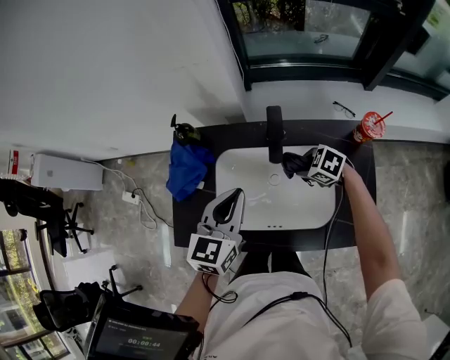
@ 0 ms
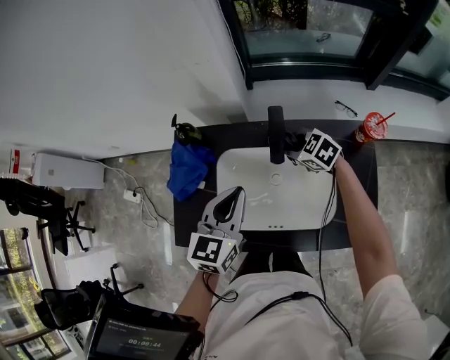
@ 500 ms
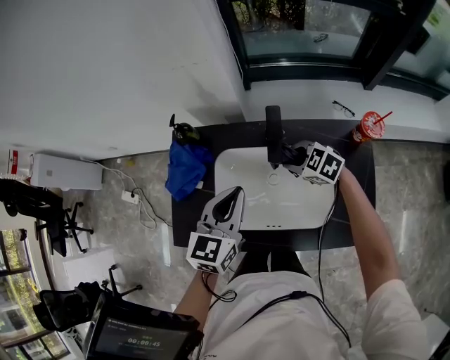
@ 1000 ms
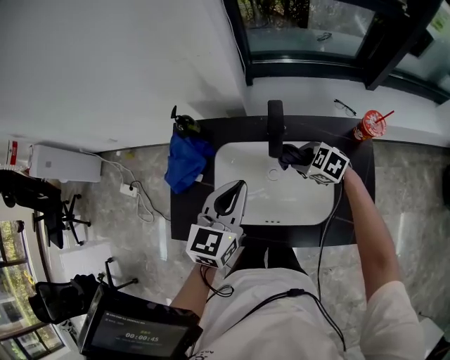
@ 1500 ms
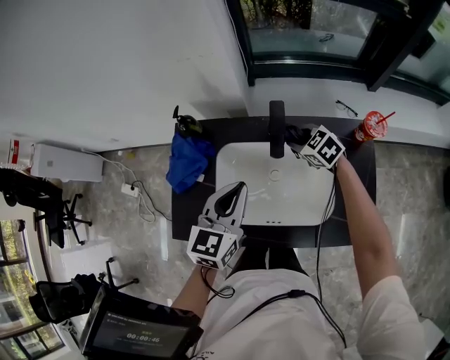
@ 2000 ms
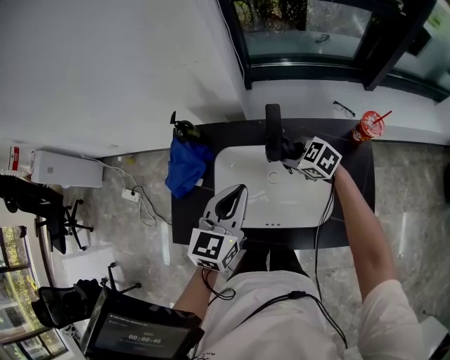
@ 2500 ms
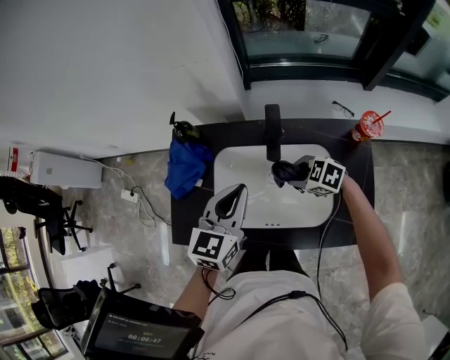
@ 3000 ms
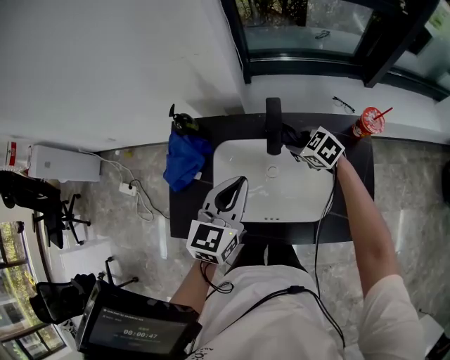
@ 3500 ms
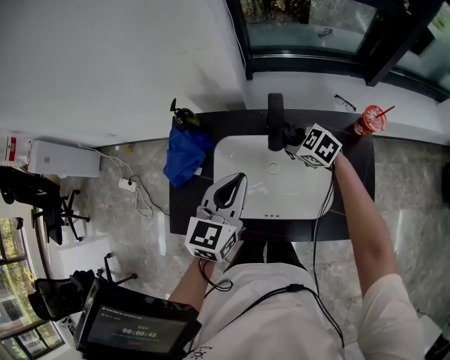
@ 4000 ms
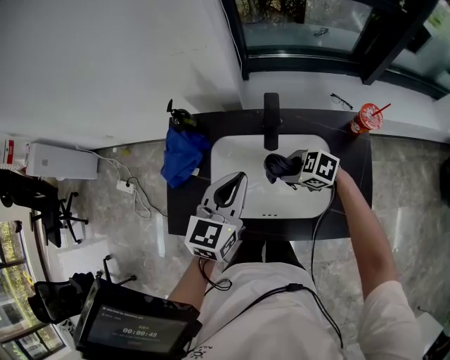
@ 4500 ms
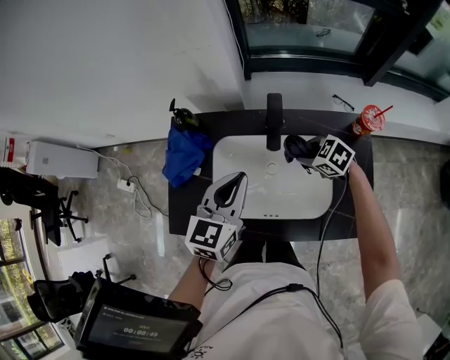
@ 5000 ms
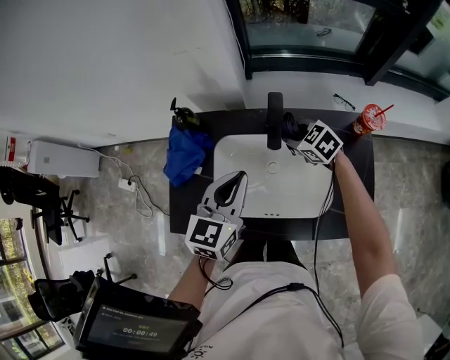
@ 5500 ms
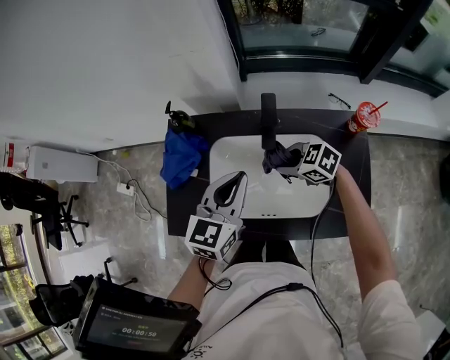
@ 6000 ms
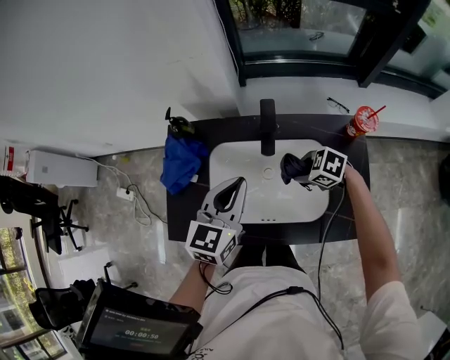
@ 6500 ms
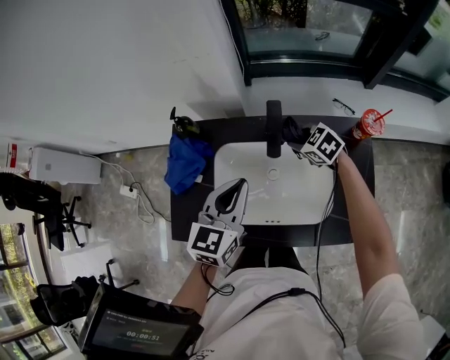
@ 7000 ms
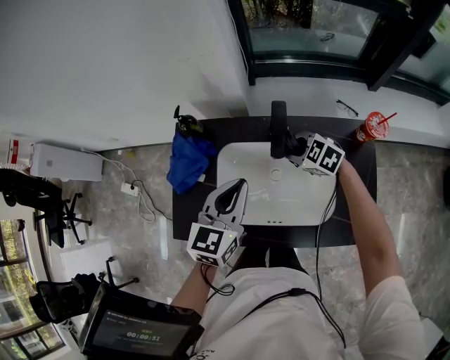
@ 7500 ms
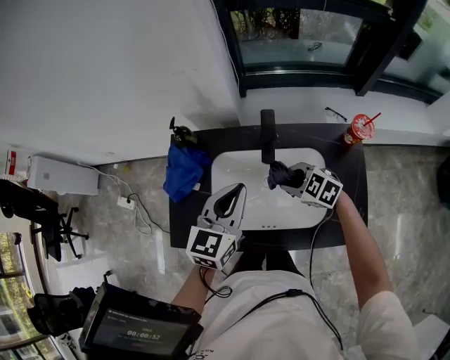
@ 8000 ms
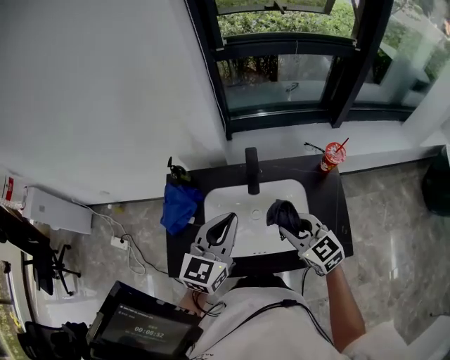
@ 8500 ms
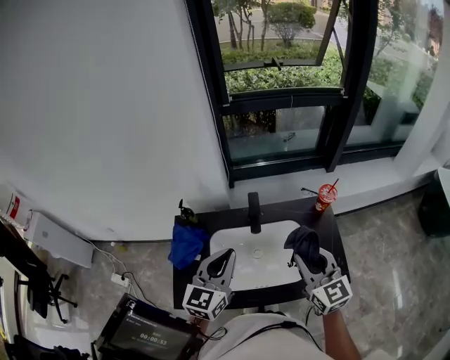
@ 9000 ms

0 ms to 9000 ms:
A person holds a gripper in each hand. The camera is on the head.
0 ms to 2000 ms: The right gripper swings forward and backward, approximately 10 cm each way, with 2 reversals, and rotates roughly 20 degrees.
2000 ms to 4500 ms: The right gripper goes forward and backward, roughly 10 cm each way, reversing 2 times, and swivels some 30 degrees.
4500 ms to 7000 ms: The right gripper moves some 15 cm, and rotates roughly 20 degrees.
7000 ms to 9000 ms: The right gripper moves upward, roughly 25 cm, and points its fingers about 40 degrees further upward, while the left gripper heads upward, covering roughly 10 cm.

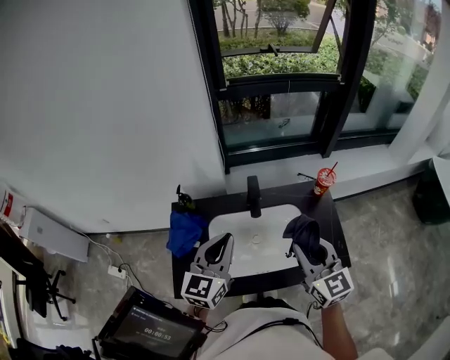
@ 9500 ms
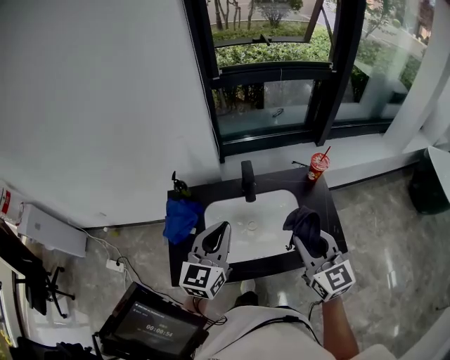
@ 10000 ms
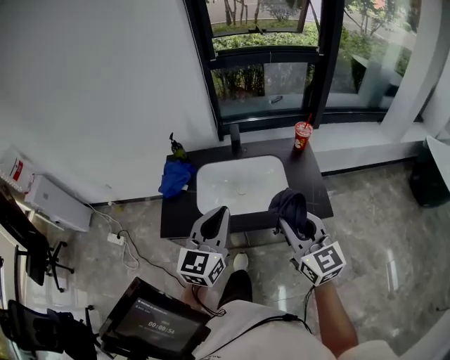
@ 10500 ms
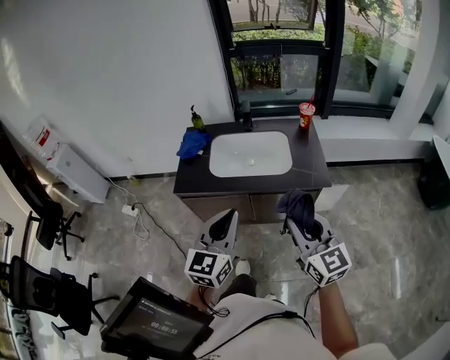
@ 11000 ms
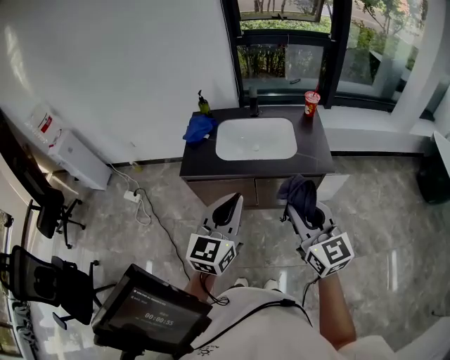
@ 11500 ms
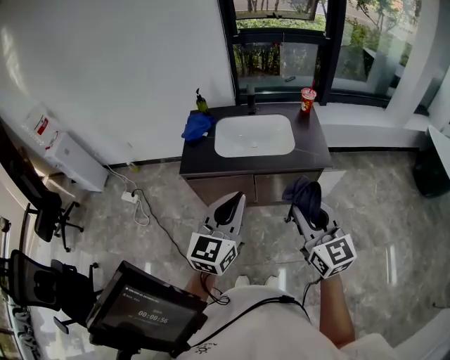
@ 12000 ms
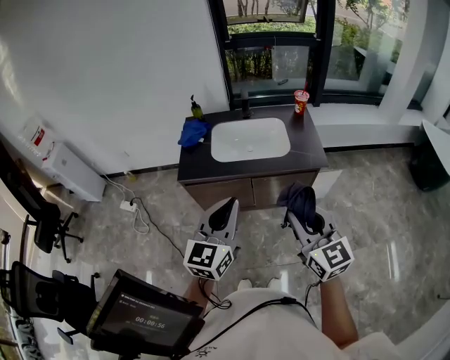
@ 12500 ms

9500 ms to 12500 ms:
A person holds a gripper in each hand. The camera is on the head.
9500 ms to 11000 ms: The grippers both shift backward by roughly 40 cm.
11000 ms to 12500 ms: The two grippers go roughly 5 cm backward.

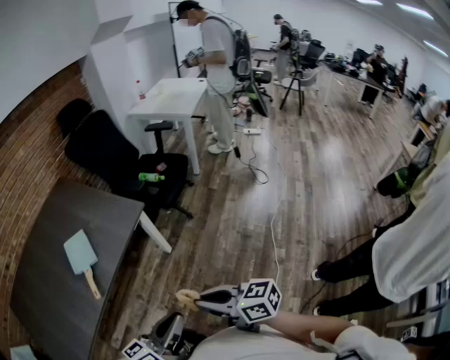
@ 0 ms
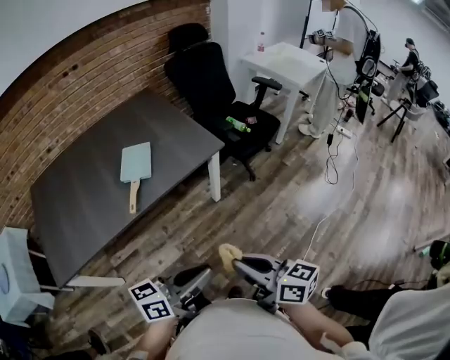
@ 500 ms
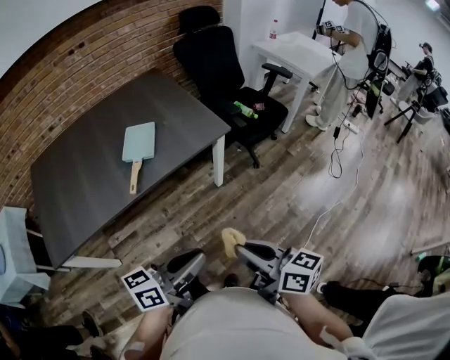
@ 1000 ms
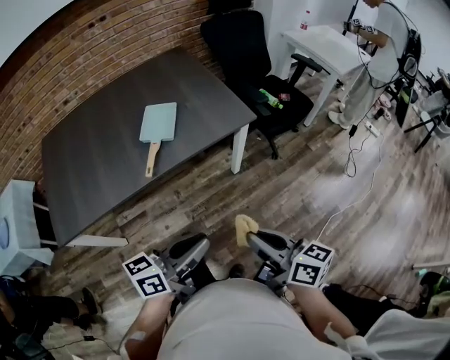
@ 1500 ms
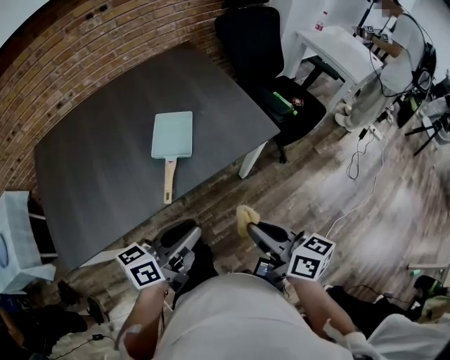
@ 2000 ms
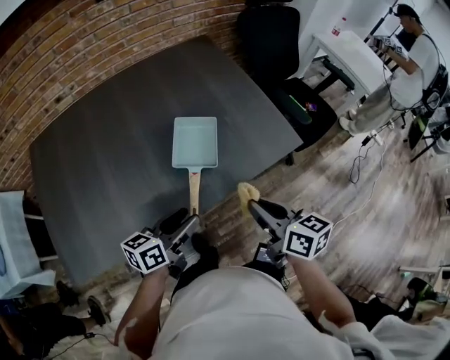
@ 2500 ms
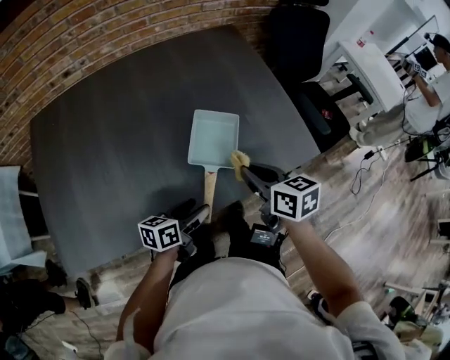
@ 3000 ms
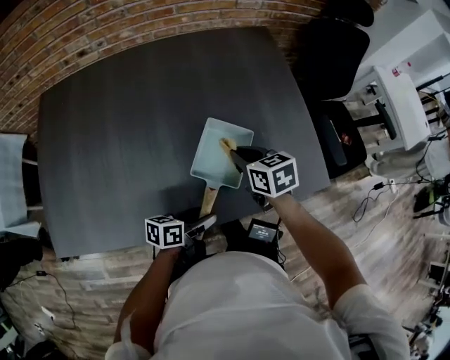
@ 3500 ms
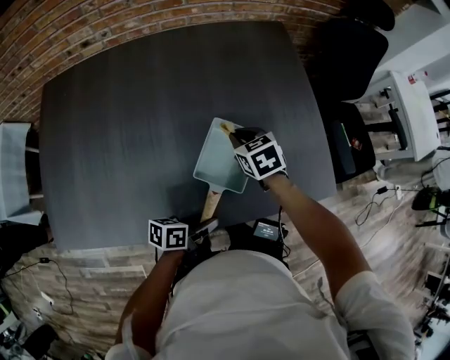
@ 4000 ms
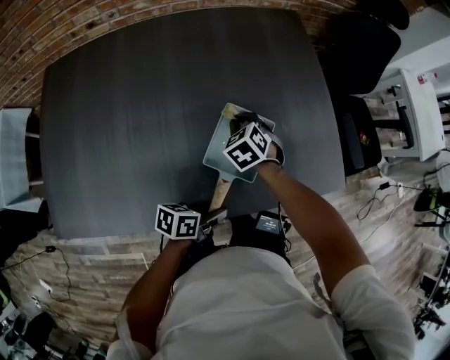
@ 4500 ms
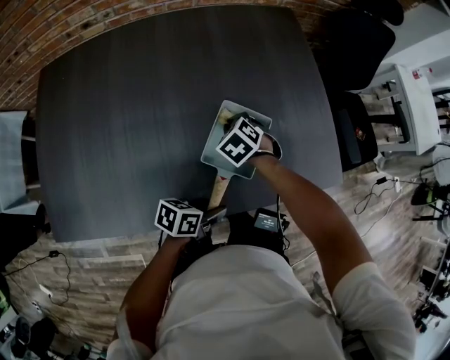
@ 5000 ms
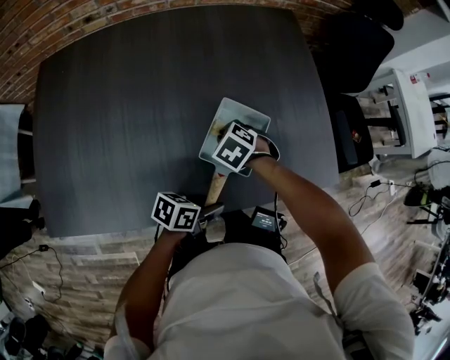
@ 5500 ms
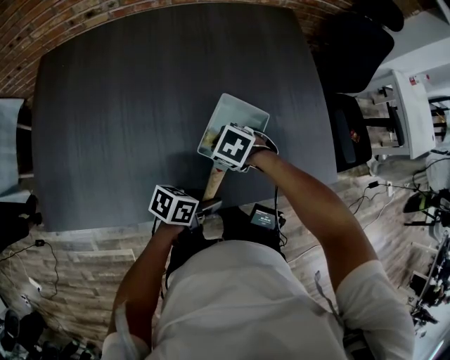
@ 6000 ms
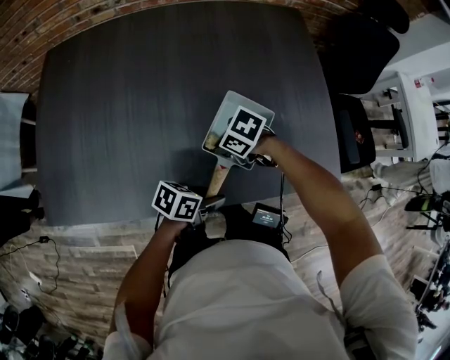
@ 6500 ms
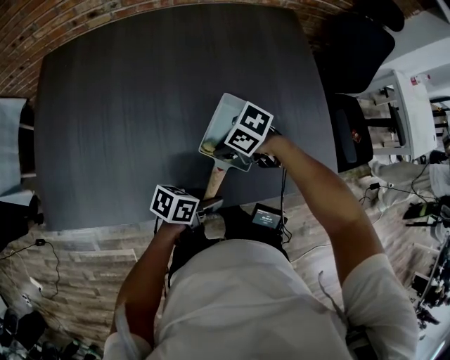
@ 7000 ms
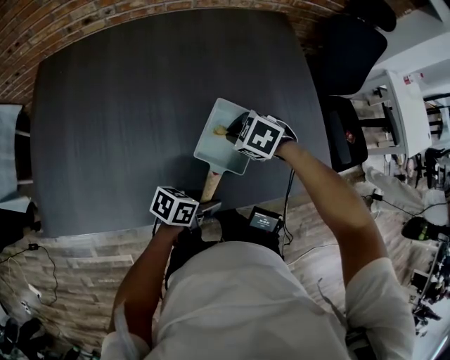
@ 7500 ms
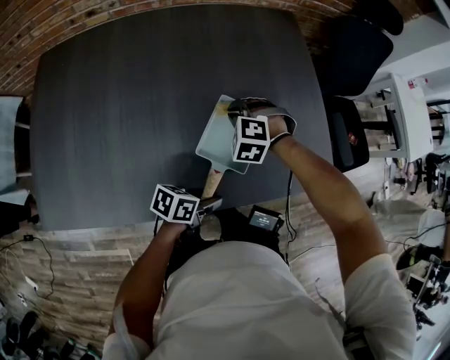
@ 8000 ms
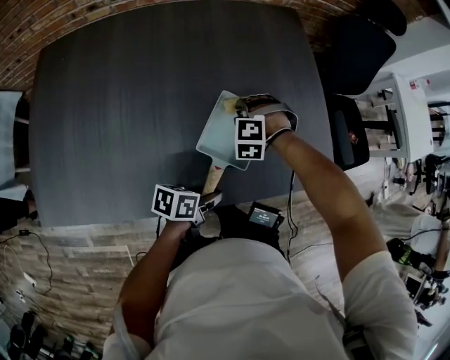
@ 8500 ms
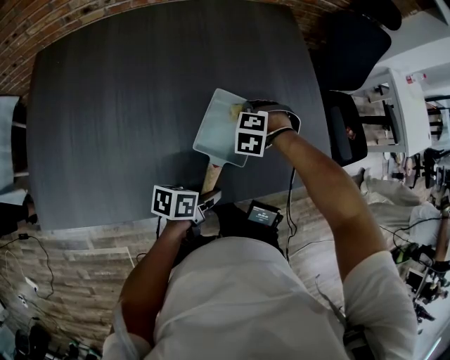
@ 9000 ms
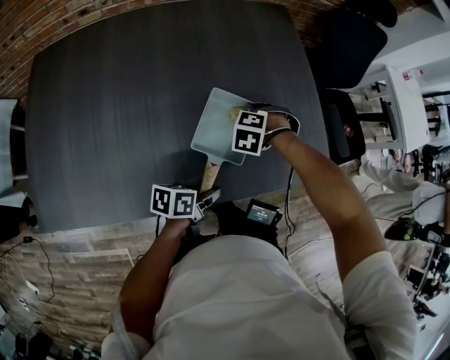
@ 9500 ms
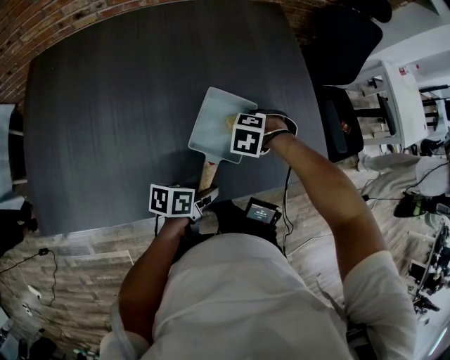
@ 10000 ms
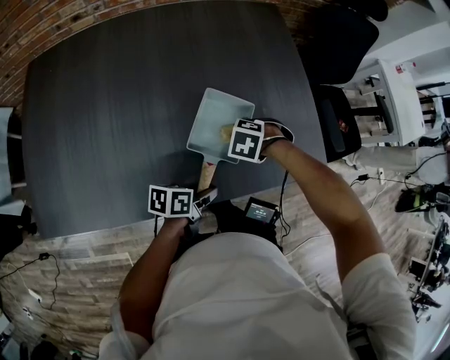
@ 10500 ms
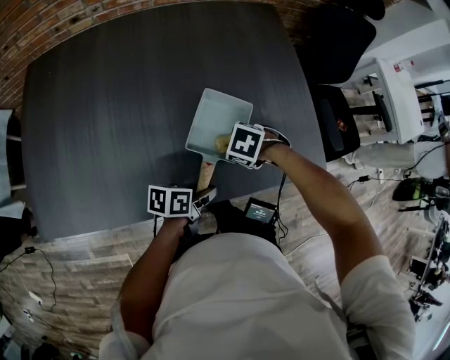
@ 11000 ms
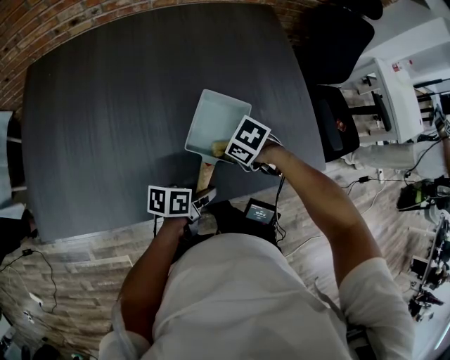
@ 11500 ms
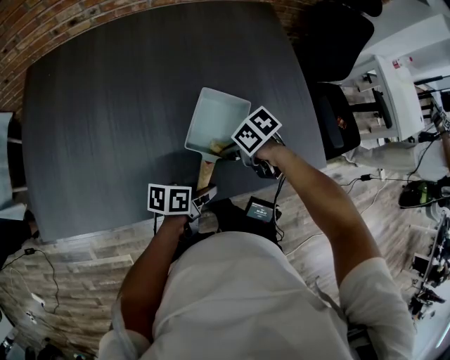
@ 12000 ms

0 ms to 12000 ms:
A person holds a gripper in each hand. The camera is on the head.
0 ms to 2000 ms: The right gripper ends up roughly 20 cm from where it was.
2000 ms to 4000 ms: The right gripper shifts by roughly 50 cm, and tips its fingers downward by roughly 40 degrees.
4000 ms to 6000 ms: The right gripper shifts by approximately 15 cm, and turns by roughly 40 degrees.
6000 ms to 8000 ms: The right gripper changes place by approximately 10 cm, and changes its angle by some 40 degrees.
8000 ms to 10000 ms: The right gripper ends up roughly 10 cm from where it was, and swivels roughly 30 degrees.
10000 ms to 12000 ms: The right gripper changes place by about 10 cm, and tips its fingers upward by approximately 30 degrees.

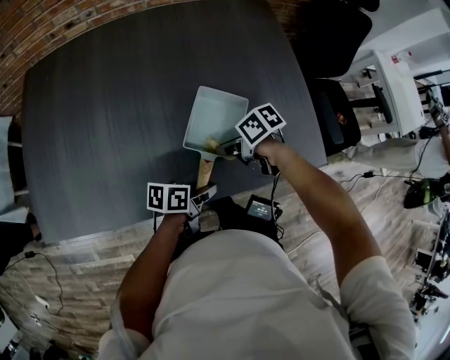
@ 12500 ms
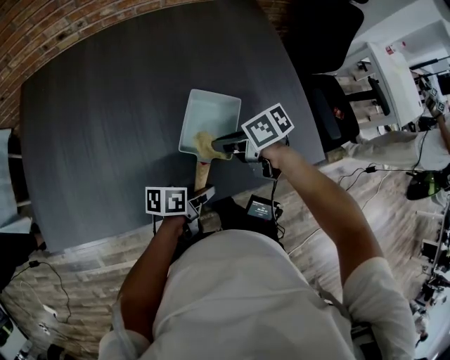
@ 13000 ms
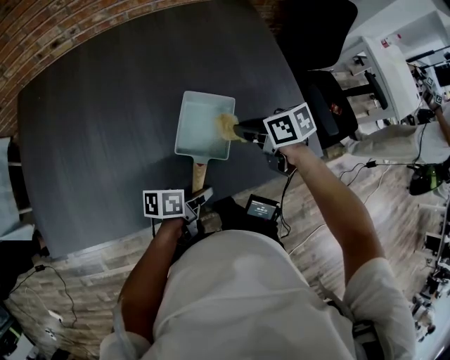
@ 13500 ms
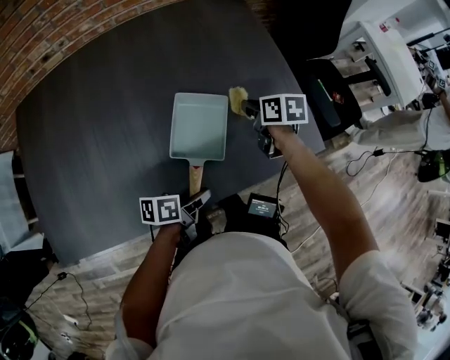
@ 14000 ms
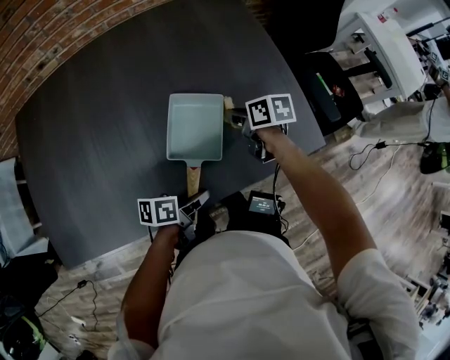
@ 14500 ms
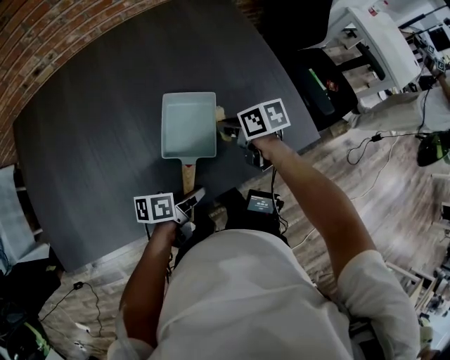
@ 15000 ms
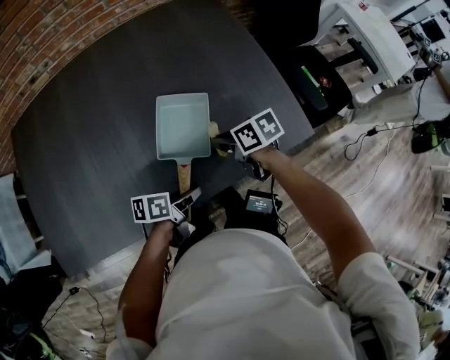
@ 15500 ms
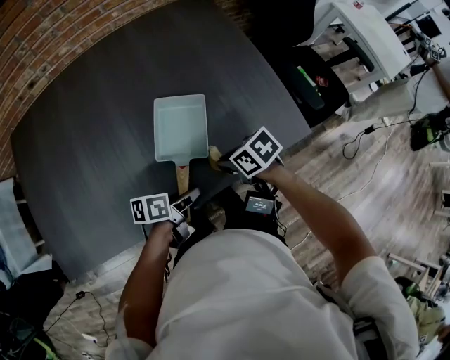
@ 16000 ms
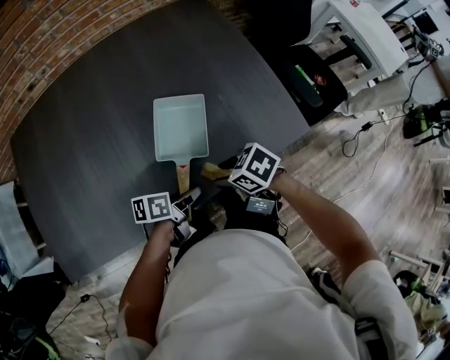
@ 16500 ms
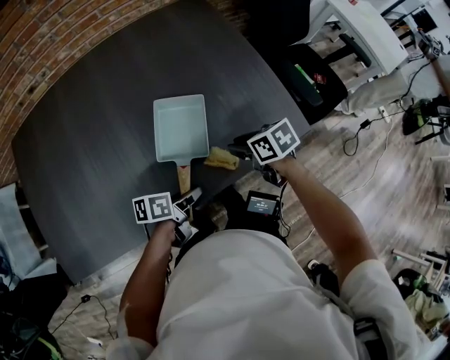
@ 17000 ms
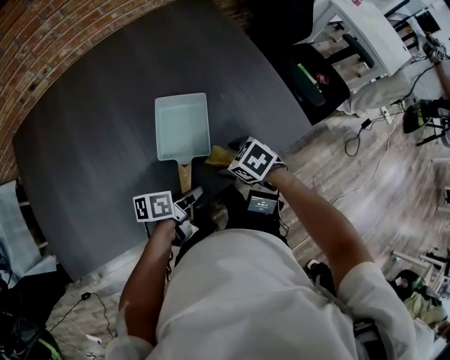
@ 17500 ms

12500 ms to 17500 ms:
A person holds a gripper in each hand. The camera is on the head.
12500 ms to 15000 ms: The right gripper changes its angle by some 30 degrees.
15000 ms to 17500 ms: The right gripper changes place by about 10 cm, changes its angle by roughly 40 degrees, and opens.
